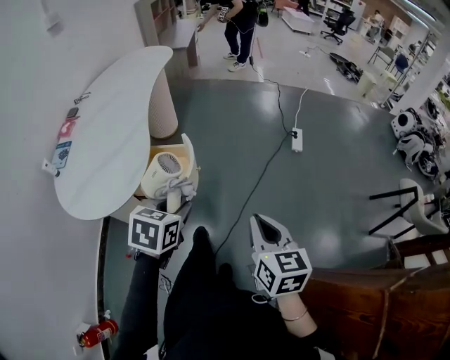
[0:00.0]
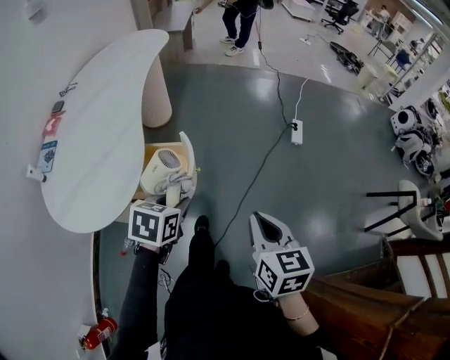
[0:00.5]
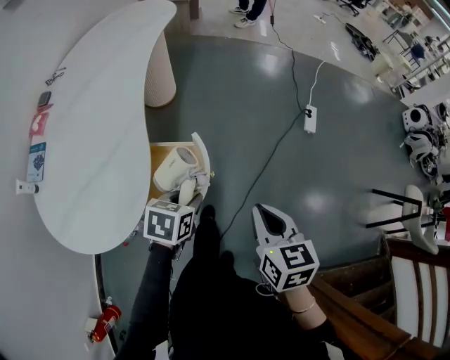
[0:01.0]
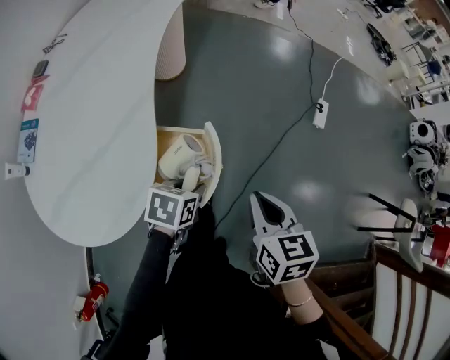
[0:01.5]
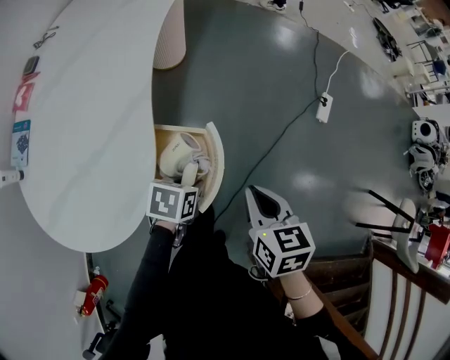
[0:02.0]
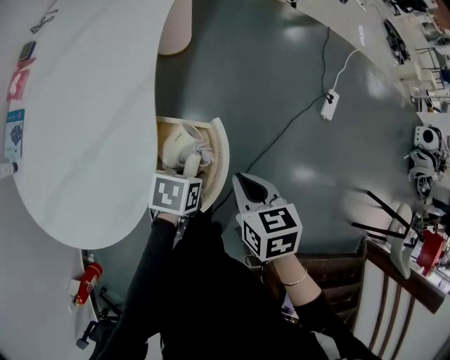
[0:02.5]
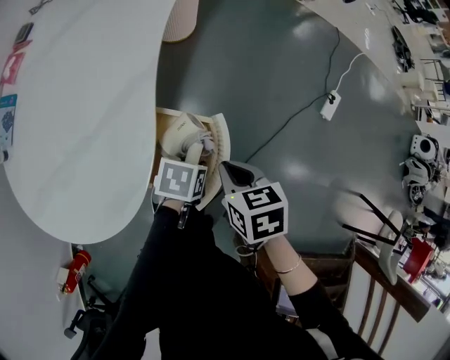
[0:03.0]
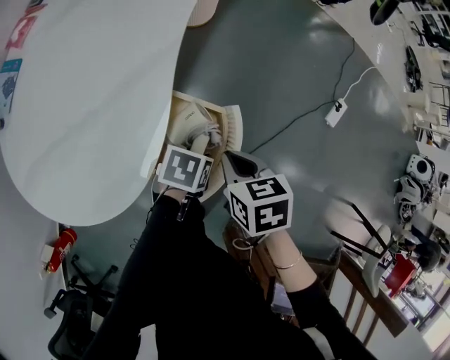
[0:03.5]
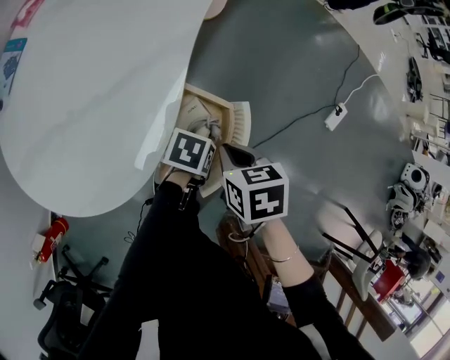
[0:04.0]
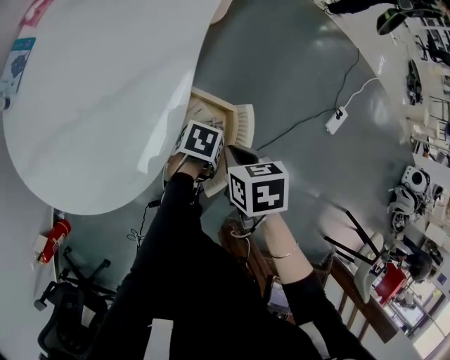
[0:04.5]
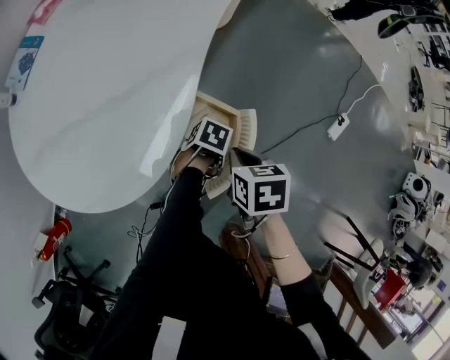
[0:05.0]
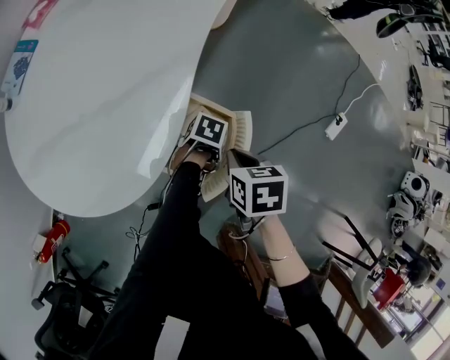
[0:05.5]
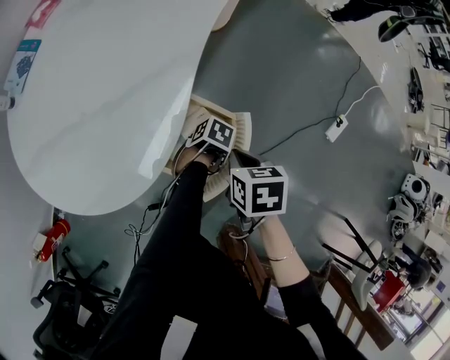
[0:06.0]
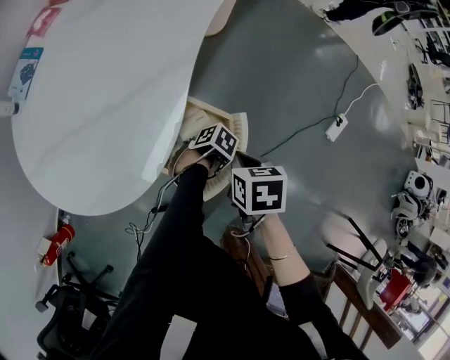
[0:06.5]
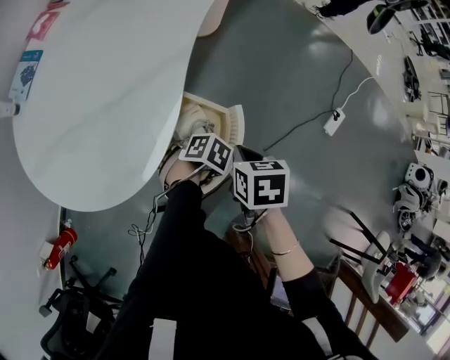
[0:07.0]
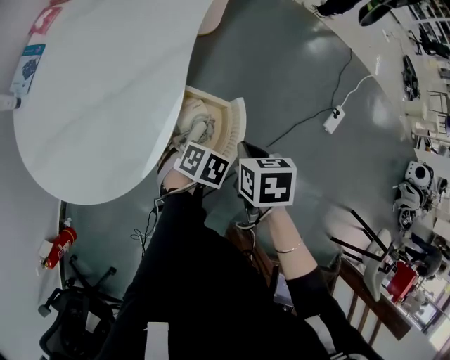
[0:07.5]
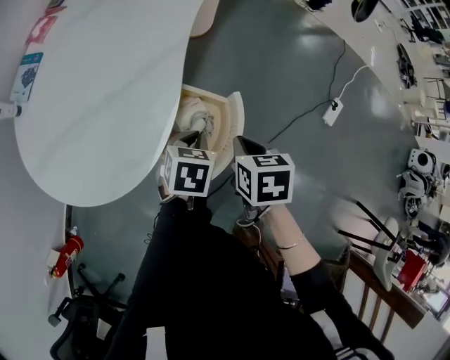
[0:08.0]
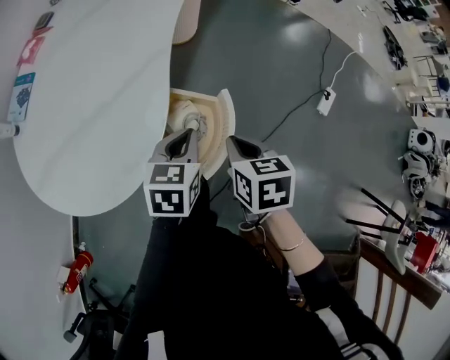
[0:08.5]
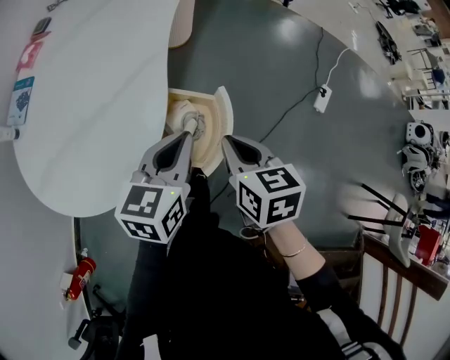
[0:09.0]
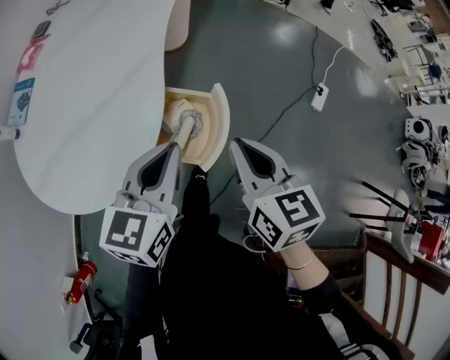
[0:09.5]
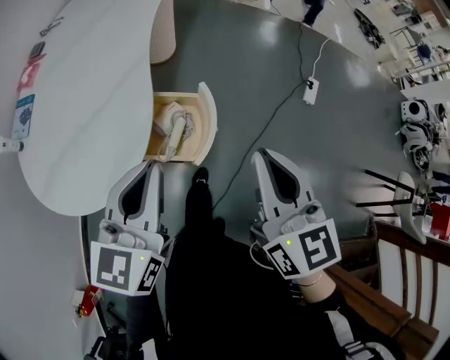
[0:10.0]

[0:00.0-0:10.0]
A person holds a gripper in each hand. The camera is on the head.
0.0 to 2.0 s: The left gripper travels downward, forward and to the left by approximately 30 cm, and changes its angle by approximately 30 degrees, while the right gripper goes approximately 30 cm forward, to the left and downward, and swivels approximately 20 degrees.
2.0 to 4.0 s: The left gripper moves downward, some 10 cm, while the right gripper changes place by approximately 15 cm, and changes its angle by approximately 30 degrees.
4.0 to 6.0 s: The left gripper heads downward, covering some 5 cm, and swivels some 20 degrees.
6.0 to 8.0 s: The left gripper travels upward by roughly 15 cm, turns by about 50 degrees, and closes.
8.0 to 10.0 s: Both grippers move upward and backward, about 25 cm. The right gripper tips its fingers upward by approximately 50 degrees, while the left gripper angles its fingers upward, by roughly 40 degrees.

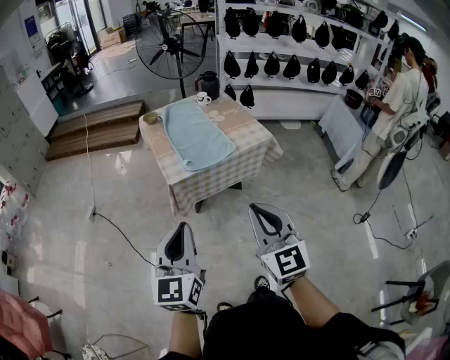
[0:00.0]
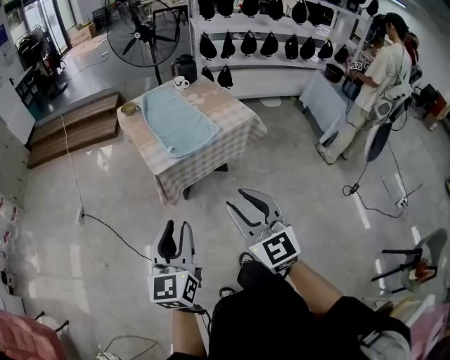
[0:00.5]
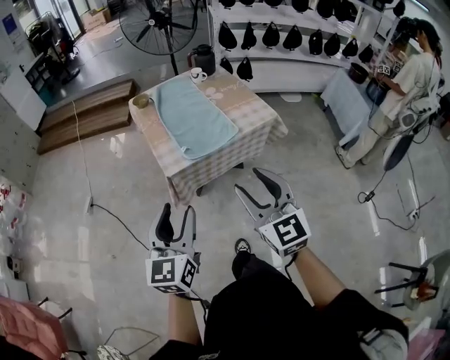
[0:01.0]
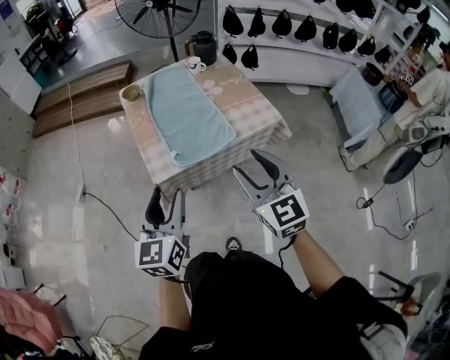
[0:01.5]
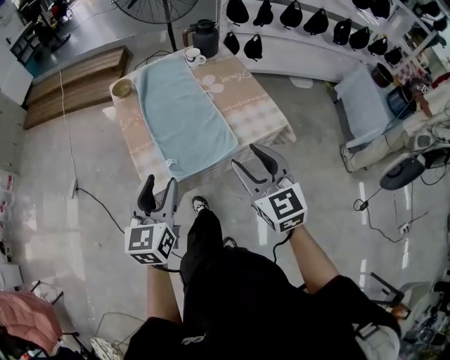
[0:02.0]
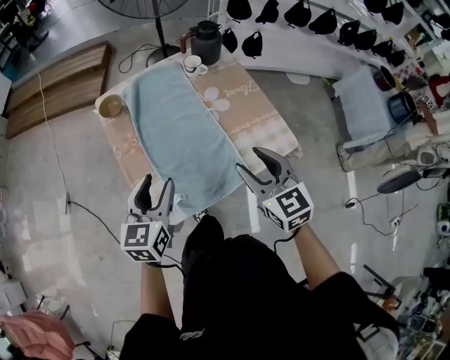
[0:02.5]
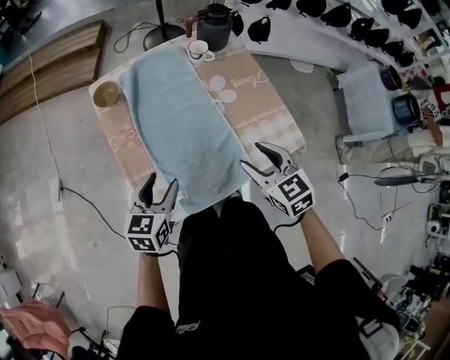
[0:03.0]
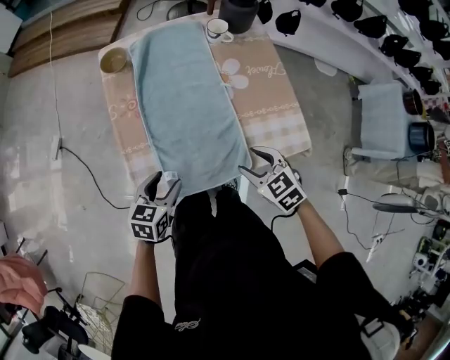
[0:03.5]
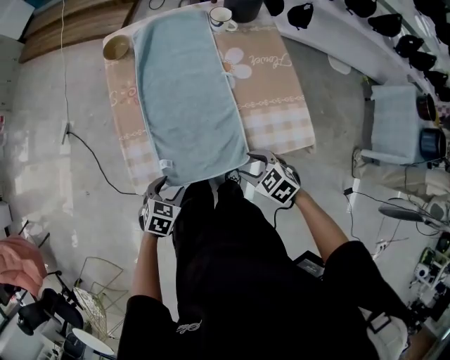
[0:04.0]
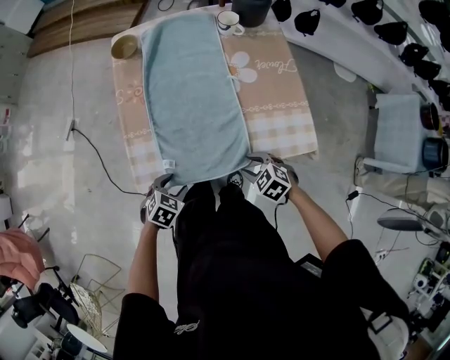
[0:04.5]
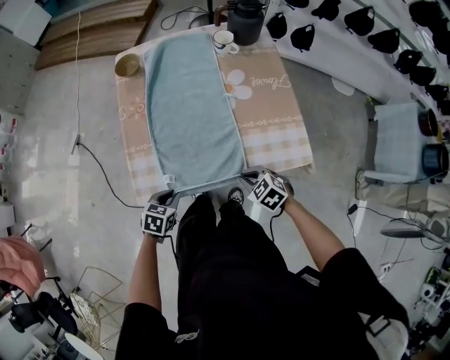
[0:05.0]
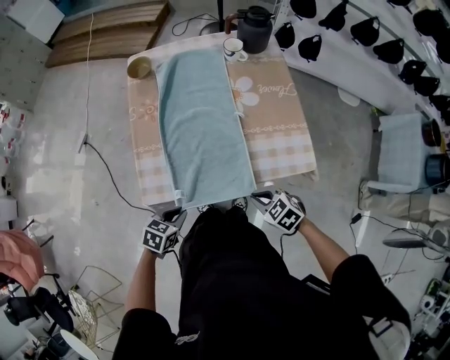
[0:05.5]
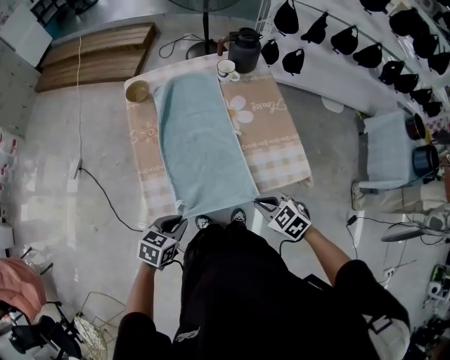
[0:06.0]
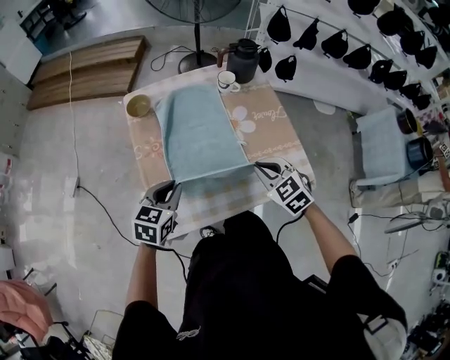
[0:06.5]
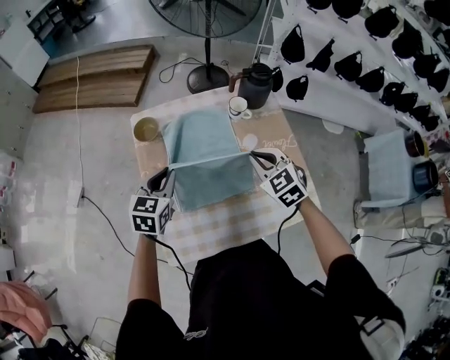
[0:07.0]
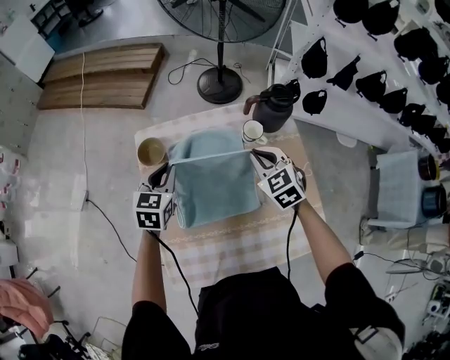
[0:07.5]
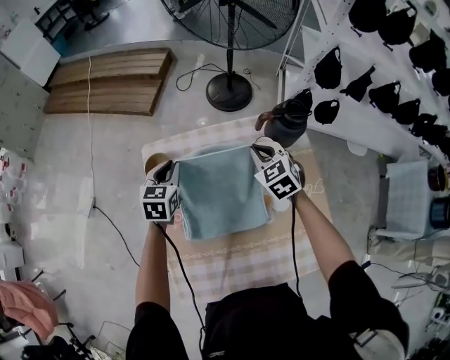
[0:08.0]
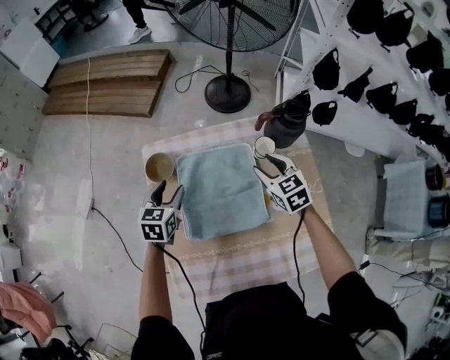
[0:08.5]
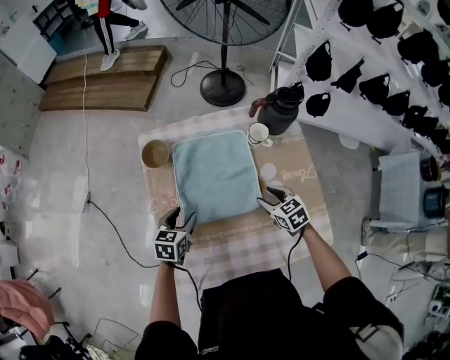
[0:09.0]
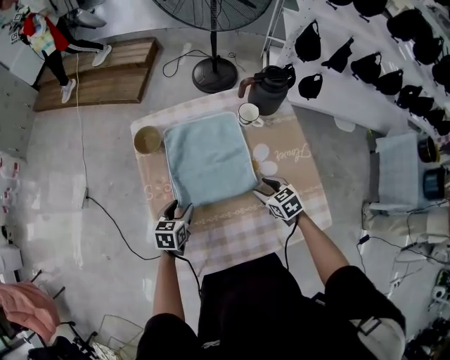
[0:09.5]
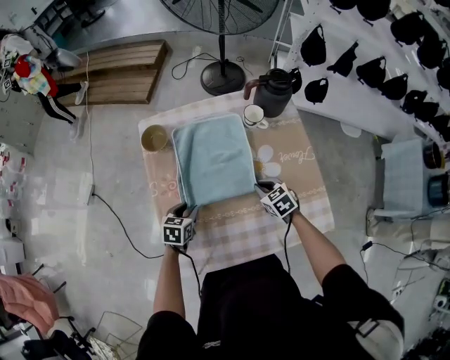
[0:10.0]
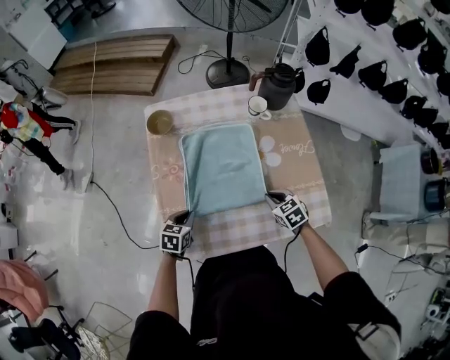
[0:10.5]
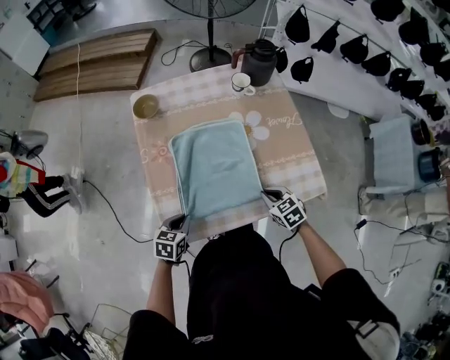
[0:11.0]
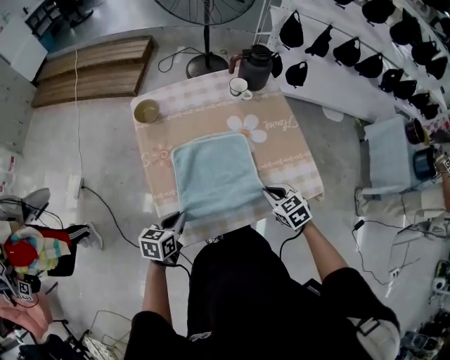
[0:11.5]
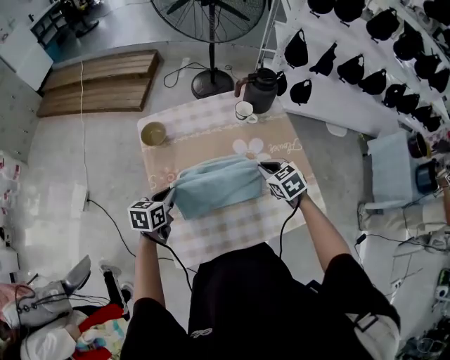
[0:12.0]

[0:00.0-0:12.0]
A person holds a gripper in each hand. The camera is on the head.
0.0 to 2.0 s: The two grippers travel together, forward, some 40 cm. The right gripper opens its fingers; the left gripper opens.
2.0 to 4.0 s: The right gripper moves downward and forward, approximately 30 cm, and points its fingers approximately 40 degrees further downward; the left gripper is displaced downward by approximately 30 cm, and angles its fingers downward, by approximately 40 degrees.
4.0 to 6.0 s: Both grippers travel together upward, some 10 cm. The left gripper closes up. Meanwhile the right gripper closes its fingers.
6.0 to 8.0 s: The pair of grippers is taken forward, approximately 60 cm. The left gripper turns by roughly 30 degrees. The right gripper changes its angle by about 30 degrees.
8.0 to 10.0 s: The two grippers go roughly 30 cm backward and downward. The left gripper swivels roughly 20 degrees, and opens its fingers. Meanwhile the right gripper swivels approximately 20 degrees, and opens and closes again.
10.0 to 12.0 s: Both grippers travel together upward, some 10 cm. The left gripper goes backward and returns, roughly 20 cm each way, and closes. The right gripper travels backward and back again, some 20 cm each way.

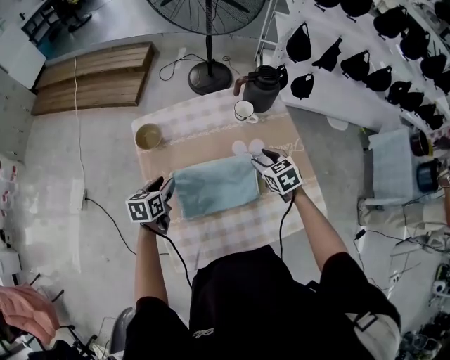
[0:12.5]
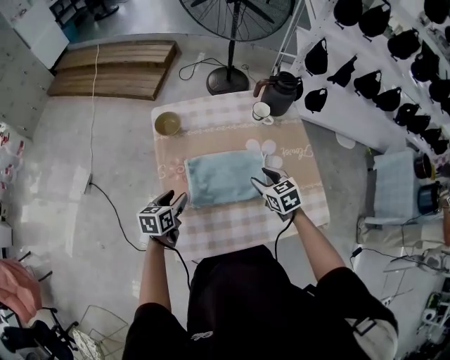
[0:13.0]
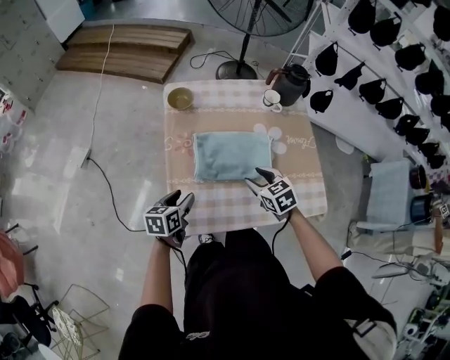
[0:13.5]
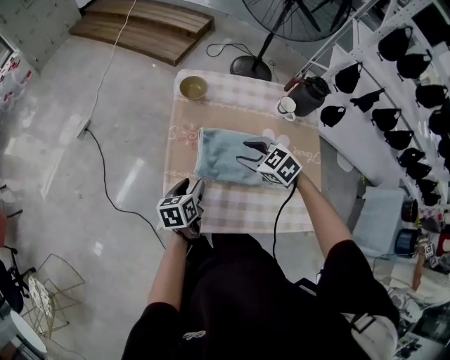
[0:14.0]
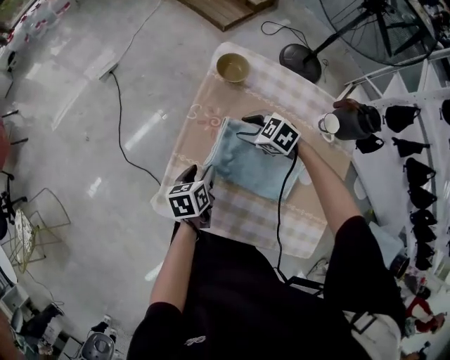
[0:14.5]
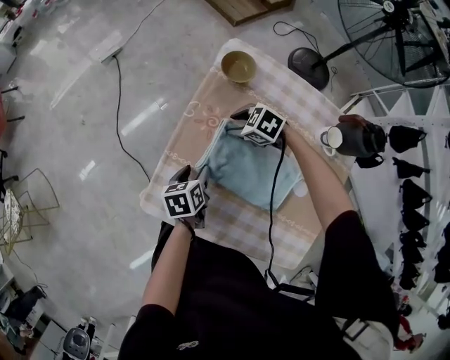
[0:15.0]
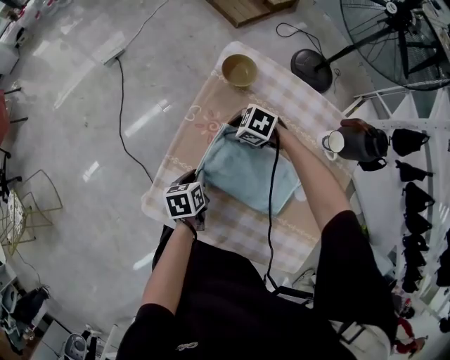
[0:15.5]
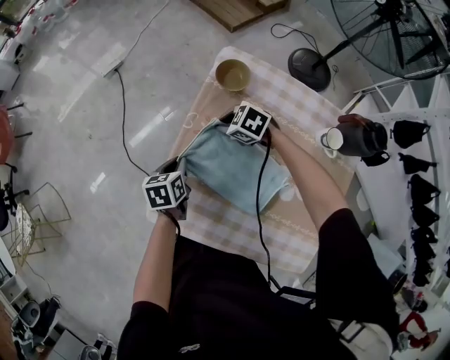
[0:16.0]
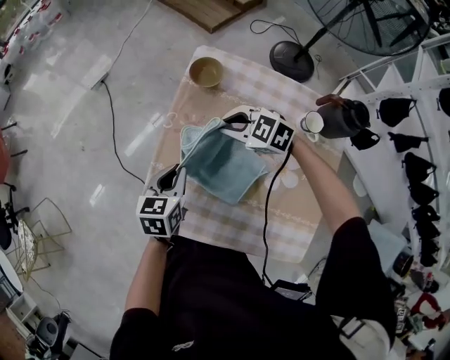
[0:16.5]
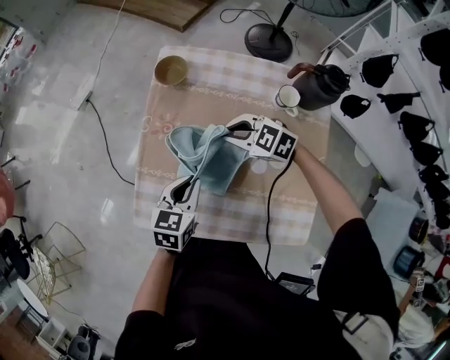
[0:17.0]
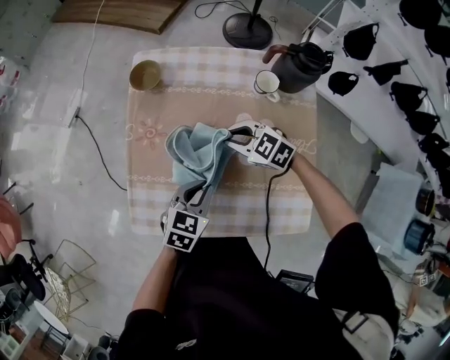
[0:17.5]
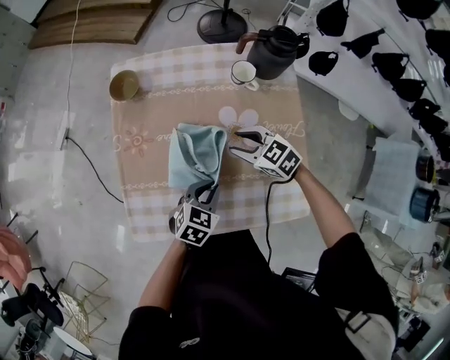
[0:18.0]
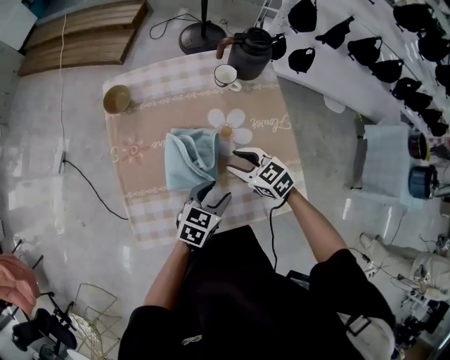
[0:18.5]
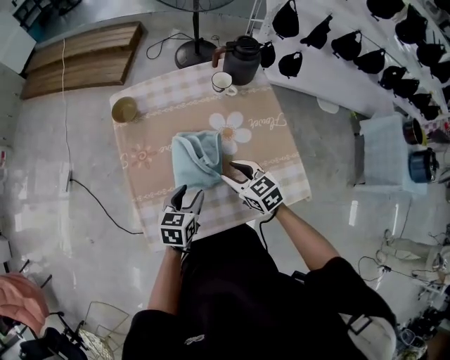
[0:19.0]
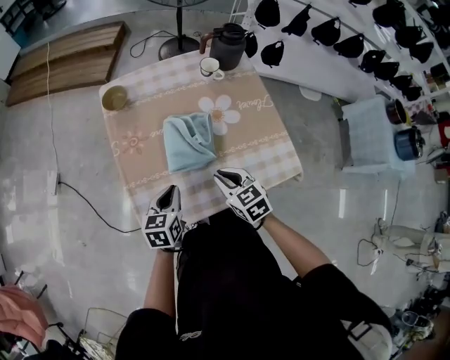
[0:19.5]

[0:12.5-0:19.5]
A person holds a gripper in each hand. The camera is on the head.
12.5 to 14.5 s: The left gripper moves roughly 15 cm, and turns by roughly 50 degrees. The right gripper ends up approximately 30 cm from where it was, and swivels roughly 70 degrees.
14.5 to 16.0 s: The right gripper moves some 10 cm, and closes its fingers. The left gripper shifts by roughly 10 cm, and closes up.
16.0 to 17.5 s: The left gripper changes place by approximately 30 cm, and rotates around the line of its fingers by approximately 50 degrees, clockwise from behind, while the right gripper shifts by roughly 25 cm, and rotates roughly 30 degrees.
17.5 to 19.5 s: The left gripper ends up about 15 cm from where it was, and opens and closes again. The right gripper changes place by roughly 20 cm, turns by approximately 50 degrees, and opens, then closes once more.
